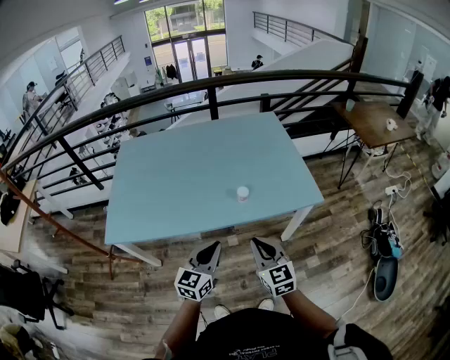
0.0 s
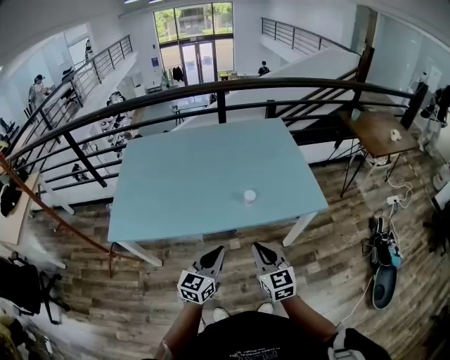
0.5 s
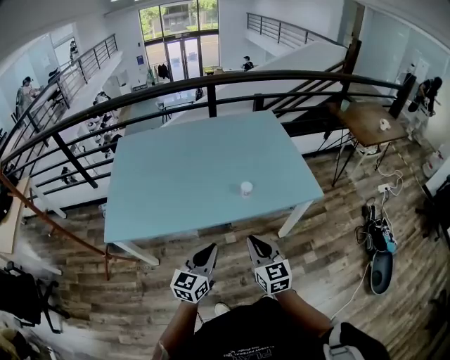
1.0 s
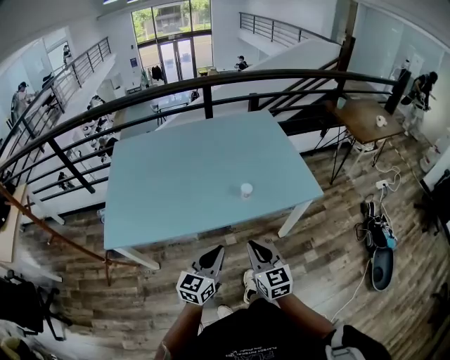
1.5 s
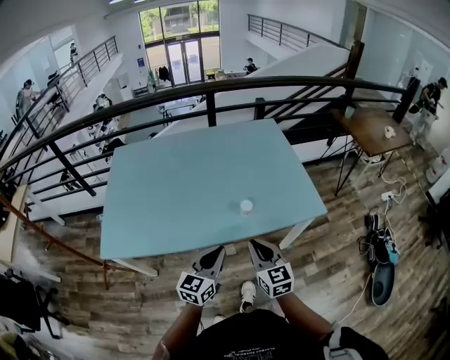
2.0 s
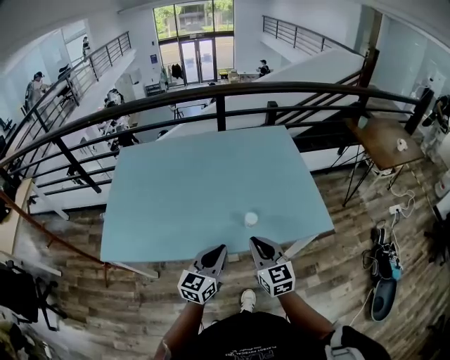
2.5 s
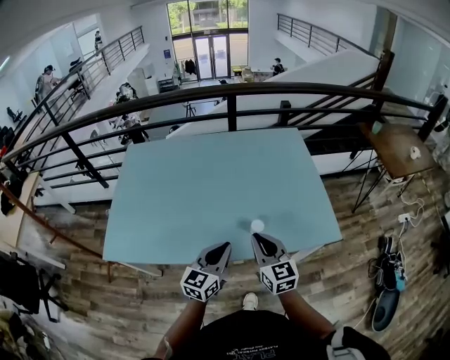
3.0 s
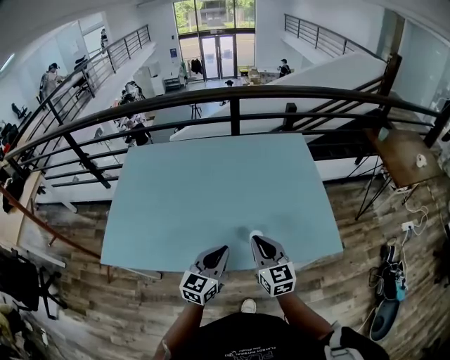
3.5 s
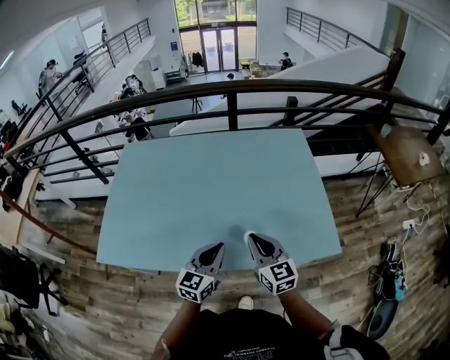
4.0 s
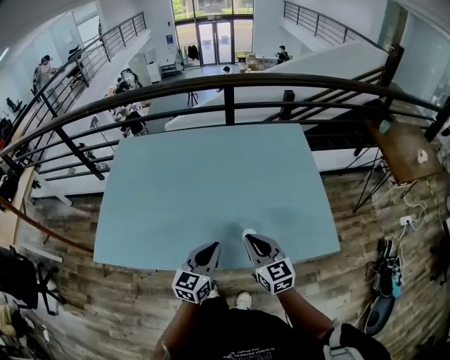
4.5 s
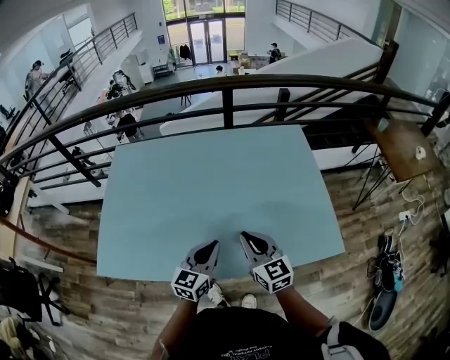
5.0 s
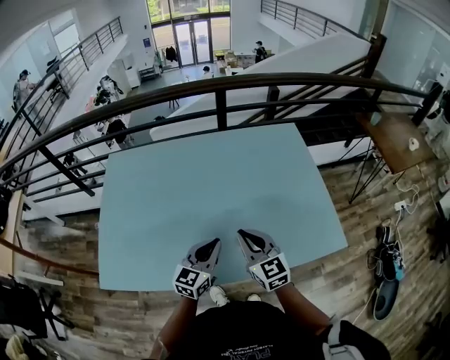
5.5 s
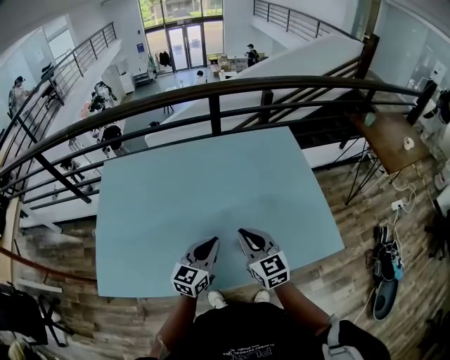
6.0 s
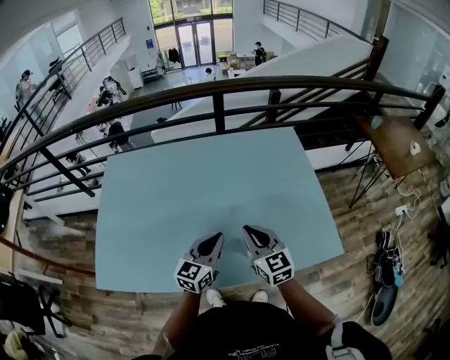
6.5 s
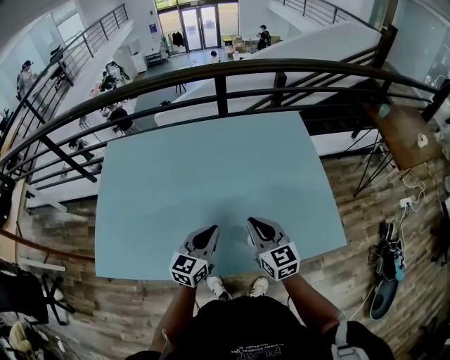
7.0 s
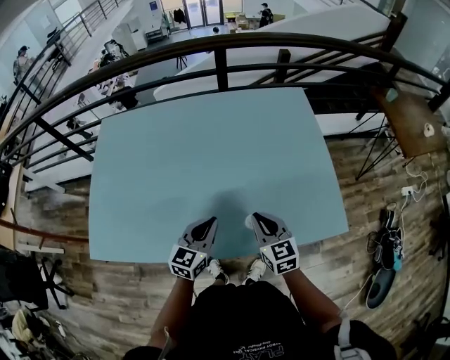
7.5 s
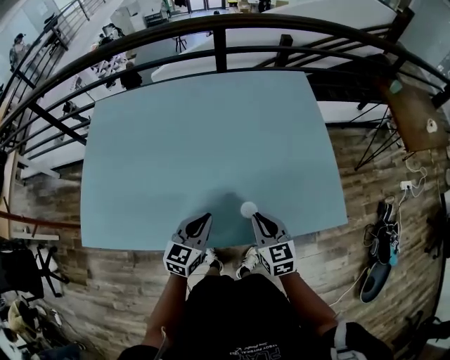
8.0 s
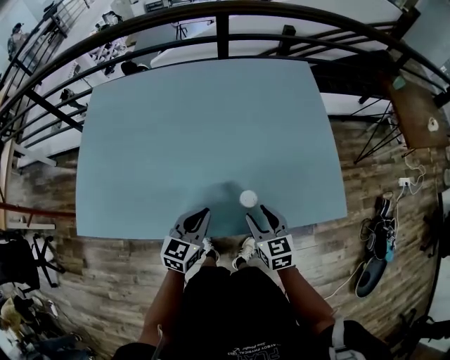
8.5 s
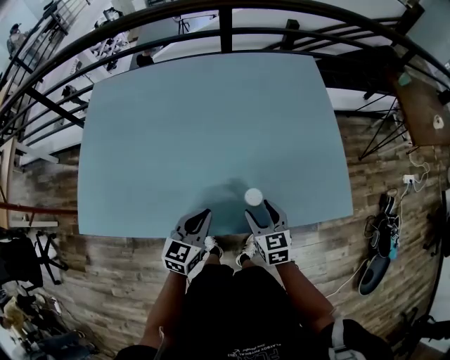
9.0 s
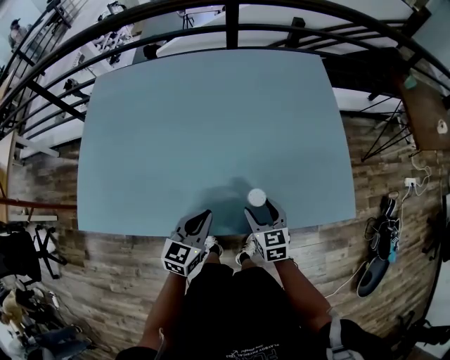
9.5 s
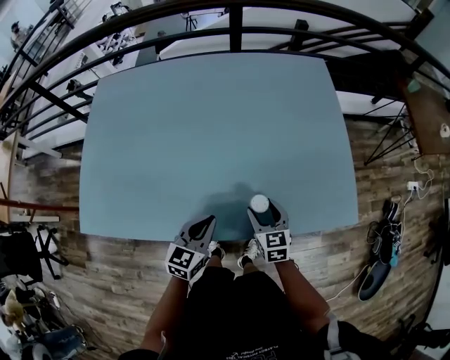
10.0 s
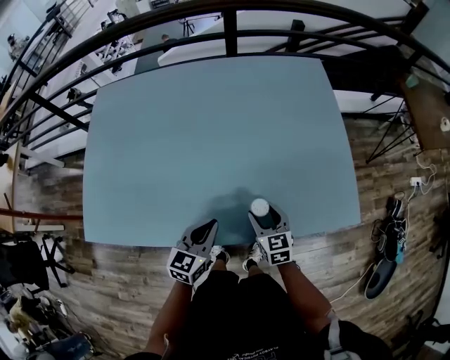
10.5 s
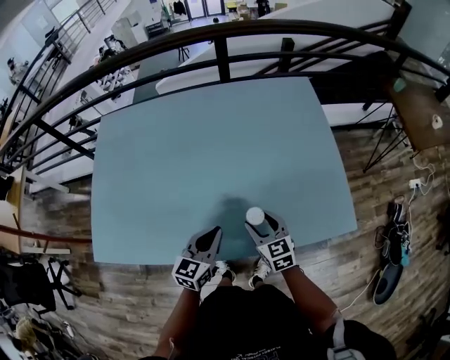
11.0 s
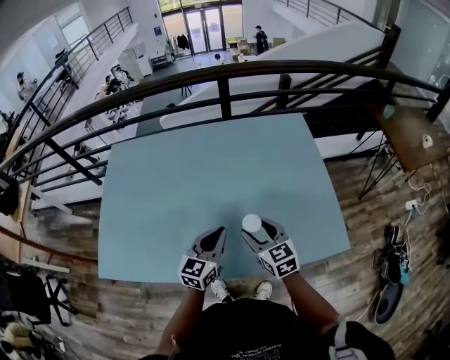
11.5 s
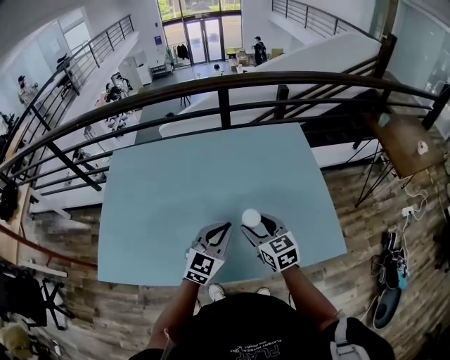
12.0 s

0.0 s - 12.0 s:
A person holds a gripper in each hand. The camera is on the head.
0.0 s - 2.0 s: The right gripper moves forward and to the left, roughly 10 cm. The left gripper moves some 5 cm.
2.0 s - 4.0 s: The grippers both shift forward by roughly 20 cm.
4.0 s - 6.0 s: The grippers both shift forward and to the left by roughly 10 cm.
6.0 s - 8.0 s: The left gripper travels downward by approximately 10 cm; the right gripper goes some 15 cm downward and to the right.
8.0 s - 10.0 s: The right gripper heads downward, covering about 10 cm, and opens up, while the left gripper shifts by some 5 cm.
10.0 s - 12.0 s: The left gripper is displaced upward and forward by some 20 cm, and rotates roughly 30 degrees. The right gripper goes some 20 cm upward.

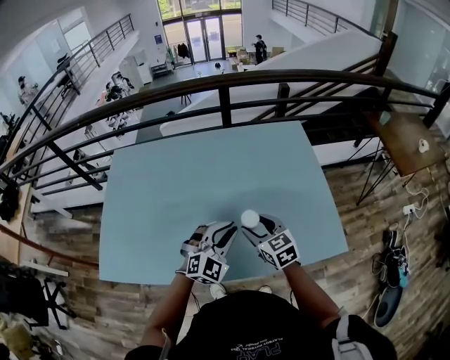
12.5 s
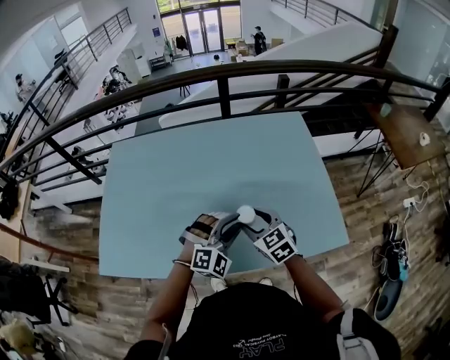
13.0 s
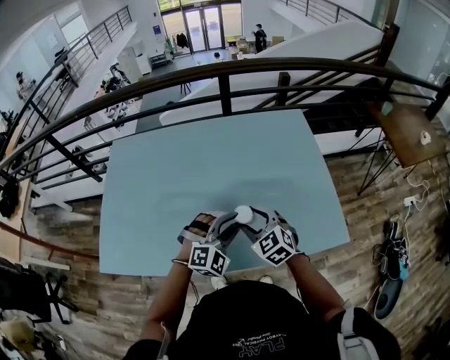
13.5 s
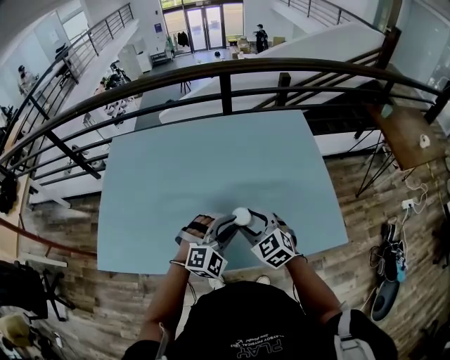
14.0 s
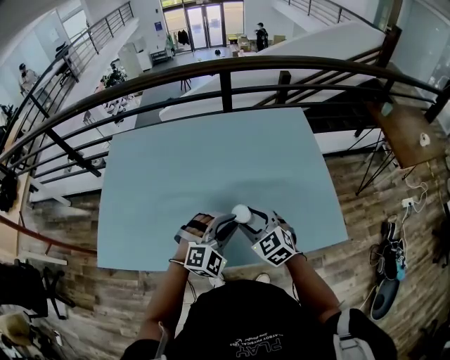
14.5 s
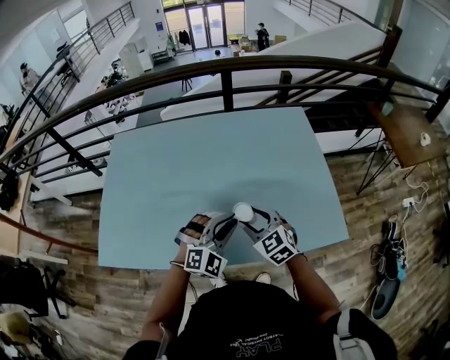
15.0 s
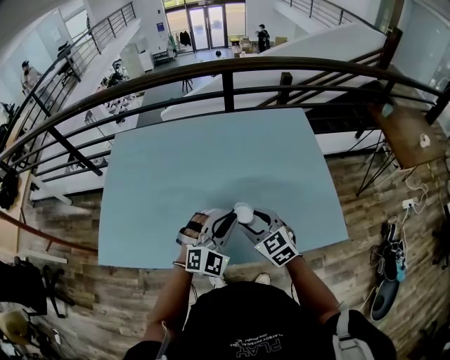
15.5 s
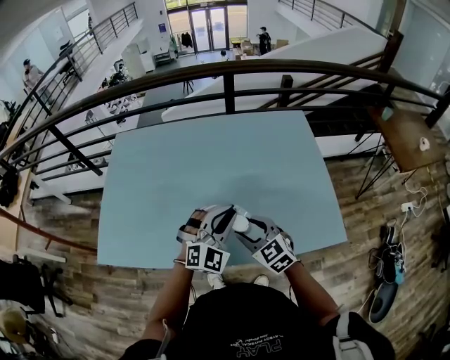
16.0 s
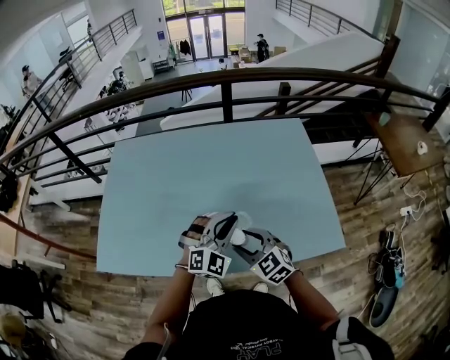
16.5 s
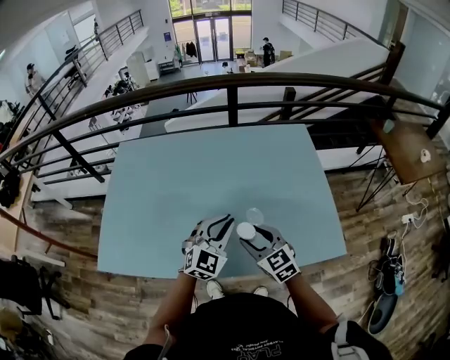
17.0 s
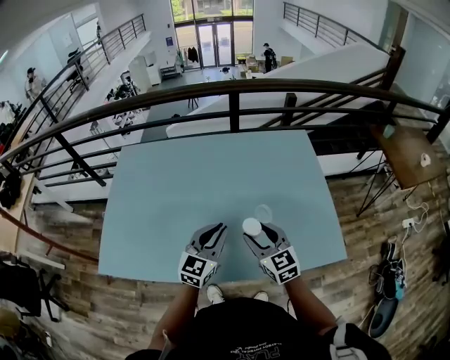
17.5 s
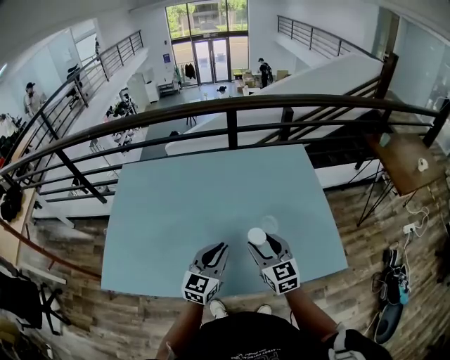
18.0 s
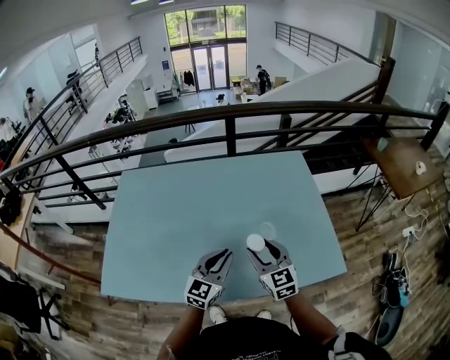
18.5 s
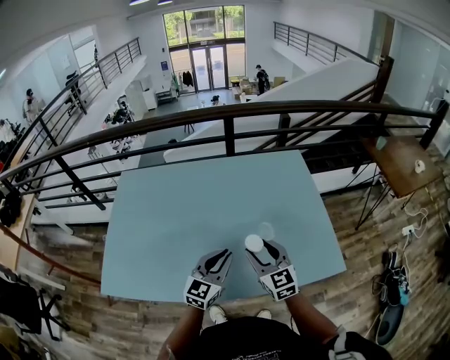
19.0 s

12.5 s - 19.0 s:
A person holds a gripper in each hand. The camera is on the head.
12.5 s - 14.5 s: The right gripper swivels roughly 20 degrees.
14.5 s - 17.0 s: The left gripper moves some 5 cm, and rotates about 30 degrees.
17.0 s - 19.0 s: The right gripper ends up roughly 5 cm from where it was, while the left gripper turns by about 30 degrees.

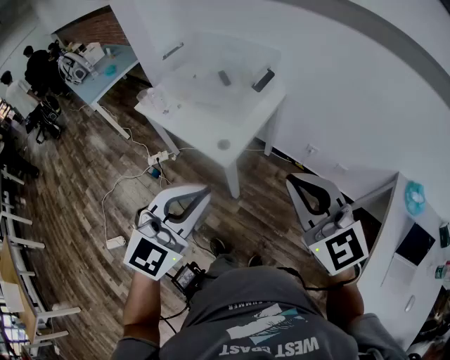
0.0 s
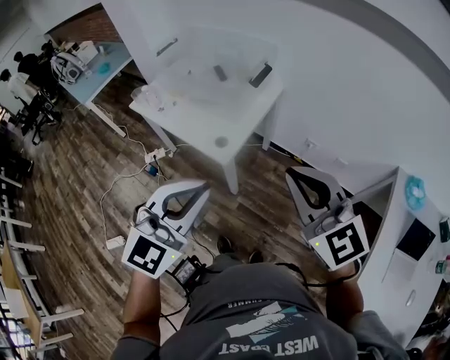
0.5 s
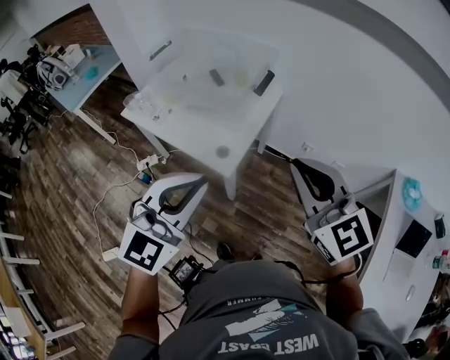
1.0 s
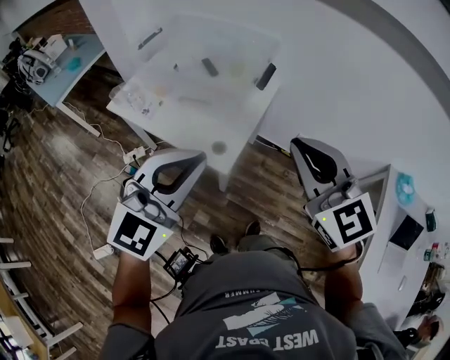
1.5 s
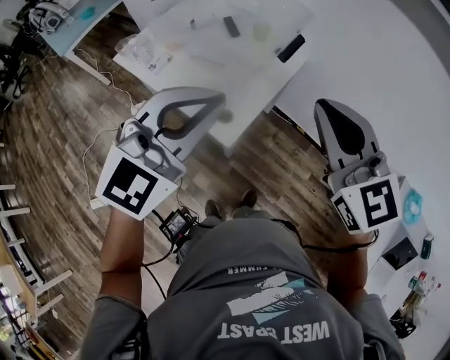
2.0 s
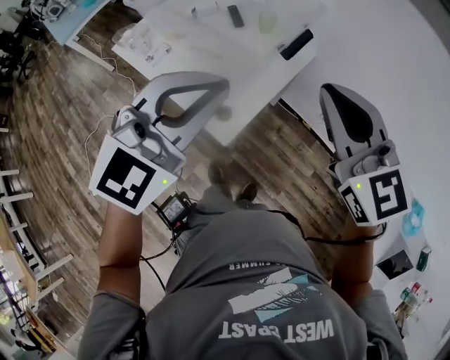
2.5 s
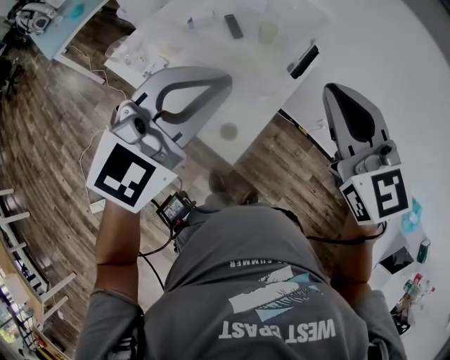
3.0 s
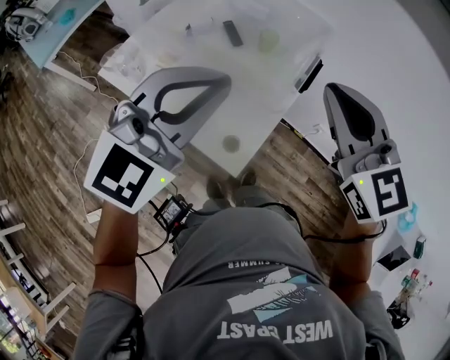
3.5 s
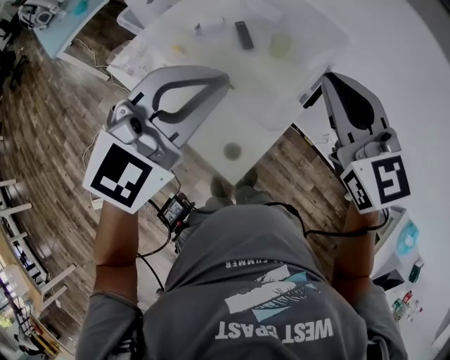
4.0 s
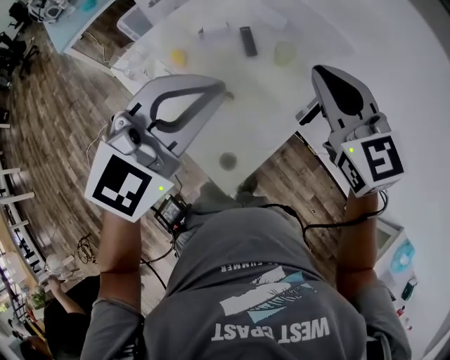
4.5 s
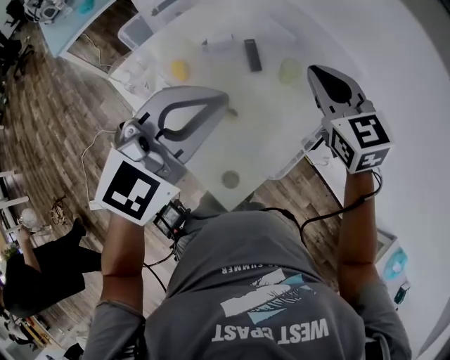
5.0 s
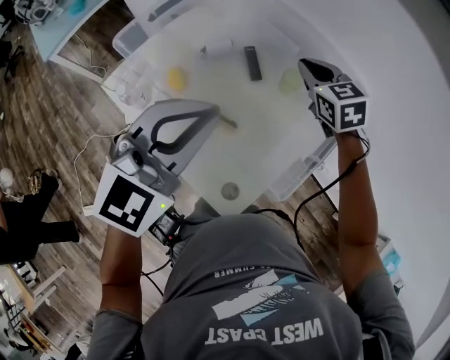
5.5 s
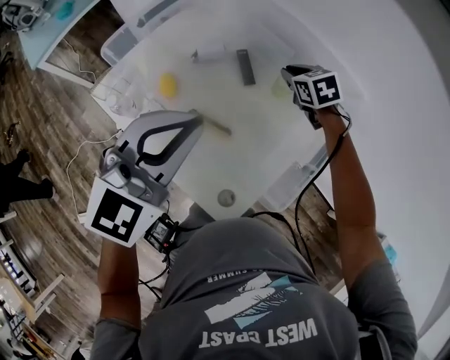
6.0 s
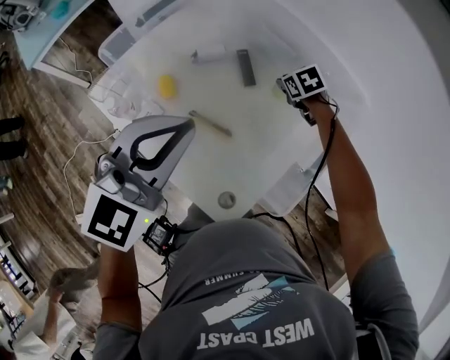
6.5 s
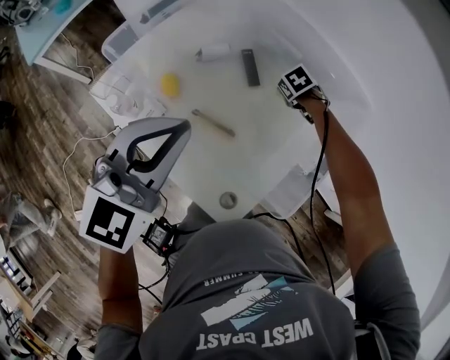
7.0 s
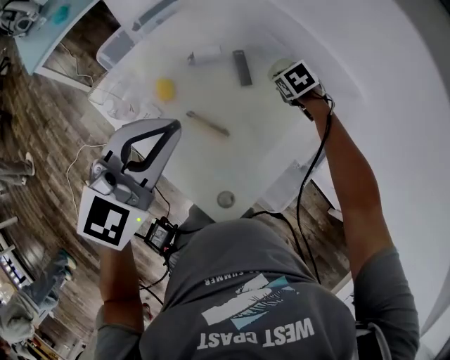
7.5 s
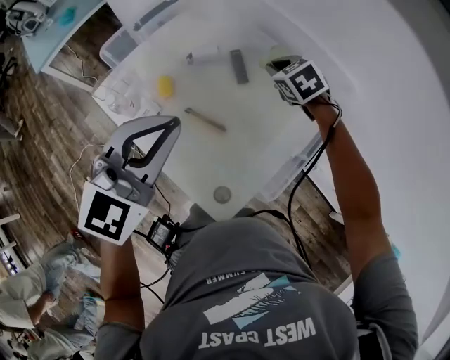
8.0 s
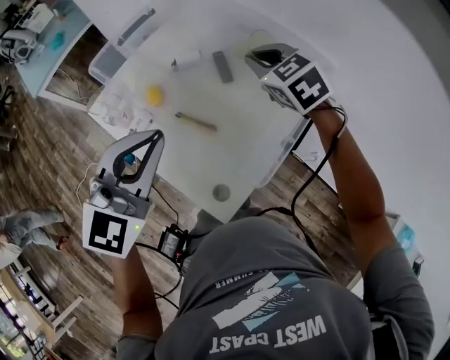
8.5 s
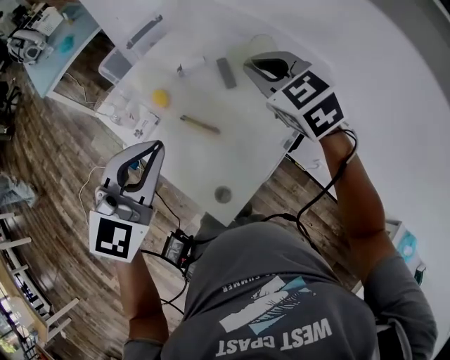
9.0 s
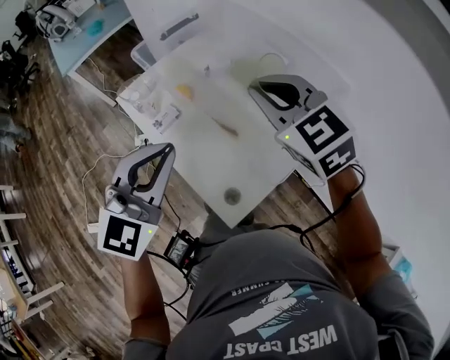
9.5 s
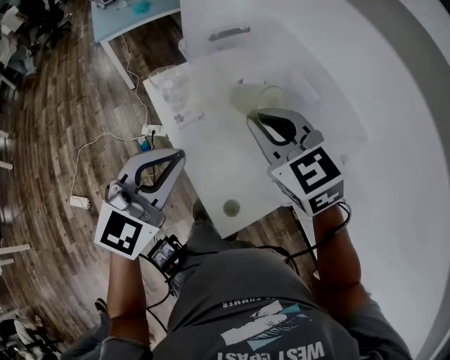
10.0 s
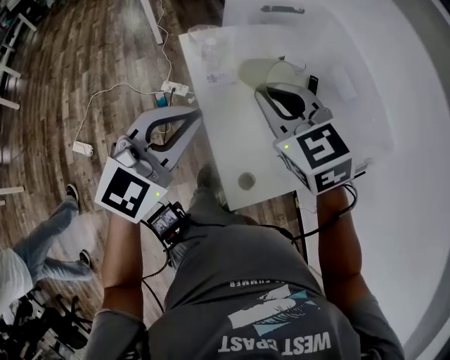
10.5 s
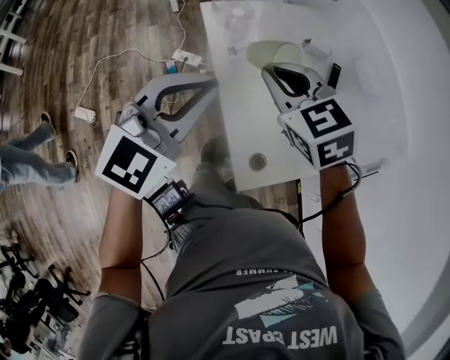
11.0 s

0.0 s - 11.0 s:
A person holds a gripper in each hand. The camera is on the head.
0.0 s - 2.0 s: The grippers both shift forward by some 25 cm.
2.0 s - 3.5 s: Both grippers travel together forward and to the left, approximately 15 cm.
3.5 s - 5.5 s: The right gripper travels forward and downward by approximately 35 cm, and turns by about 20 degrees; the left gripper shifts some 15 cm forward.
5.5 s - 7.5 s: The left gripper moves approximately 5 cm. Meanwhile the right gripper heads downward, covering about 15 cm, and tilts its fingers about 30 degrees downward.
7.5 s - 9.0 s: The right gripper shifts roughly 30 cm upward and backward, and tilts its fingers about 40 degrees upward, while the left gripper moves backward, approximately 10 cm.
9.0 s - 11.0 s: The right gripper moves approximately 30 cm, and changes its angle by about 30 degrees, while the left gripper changes place by approximately 15 cm.
